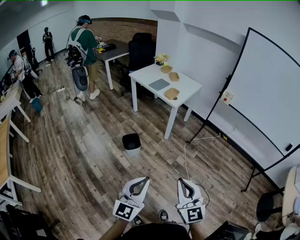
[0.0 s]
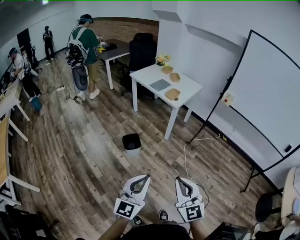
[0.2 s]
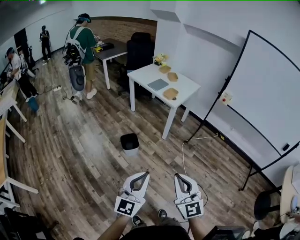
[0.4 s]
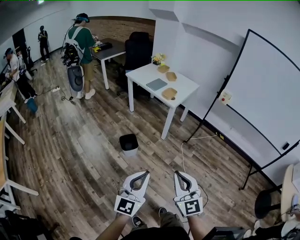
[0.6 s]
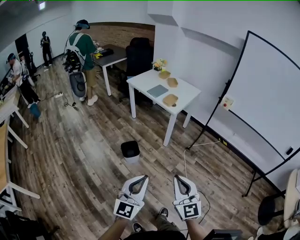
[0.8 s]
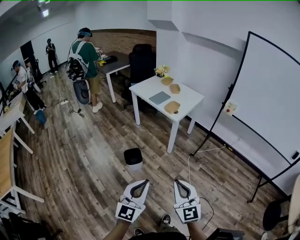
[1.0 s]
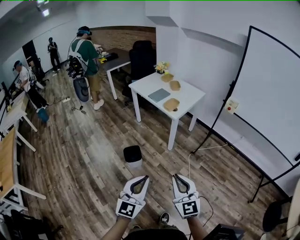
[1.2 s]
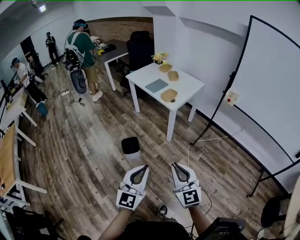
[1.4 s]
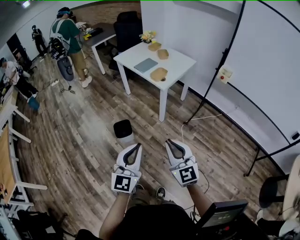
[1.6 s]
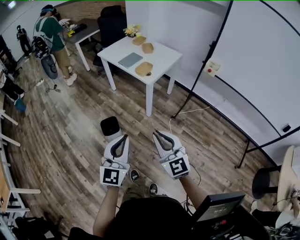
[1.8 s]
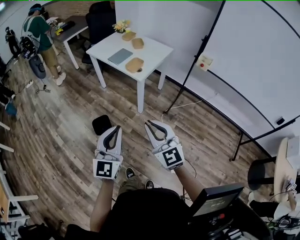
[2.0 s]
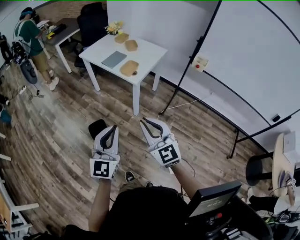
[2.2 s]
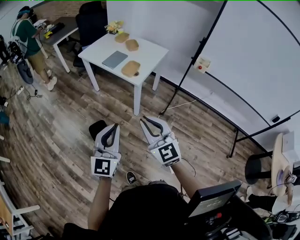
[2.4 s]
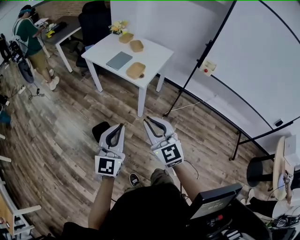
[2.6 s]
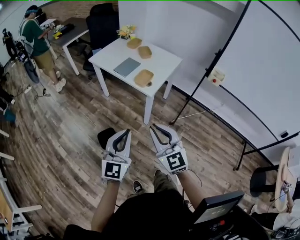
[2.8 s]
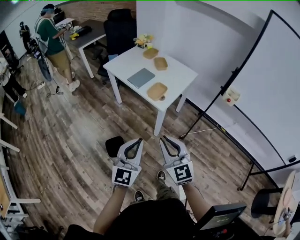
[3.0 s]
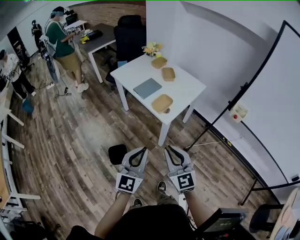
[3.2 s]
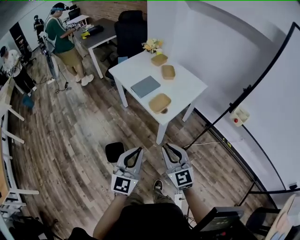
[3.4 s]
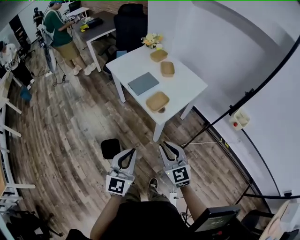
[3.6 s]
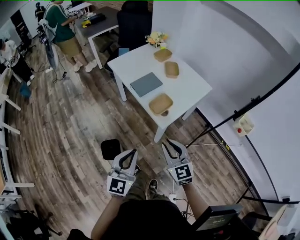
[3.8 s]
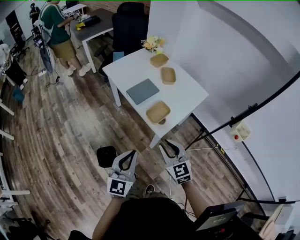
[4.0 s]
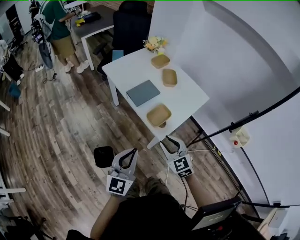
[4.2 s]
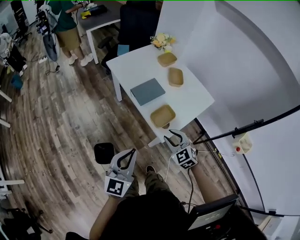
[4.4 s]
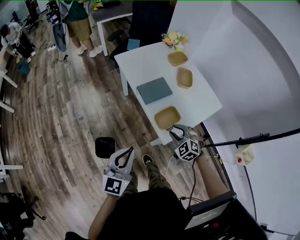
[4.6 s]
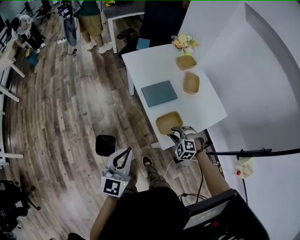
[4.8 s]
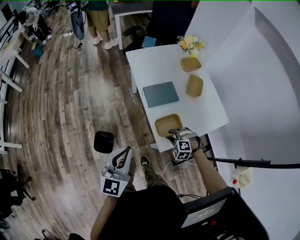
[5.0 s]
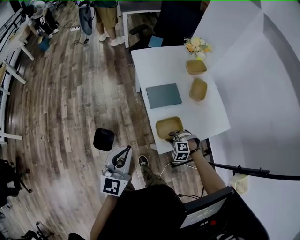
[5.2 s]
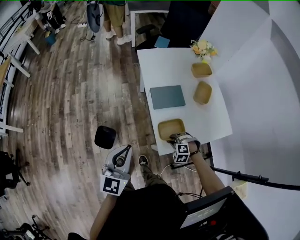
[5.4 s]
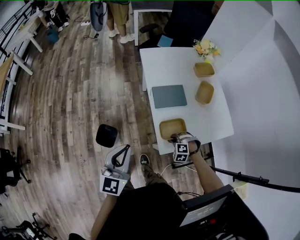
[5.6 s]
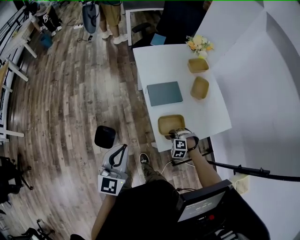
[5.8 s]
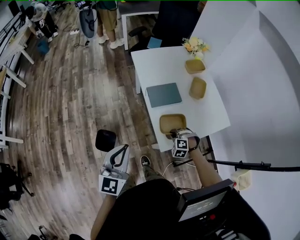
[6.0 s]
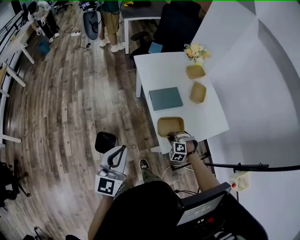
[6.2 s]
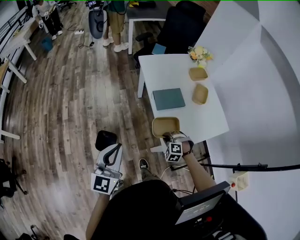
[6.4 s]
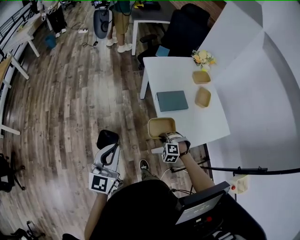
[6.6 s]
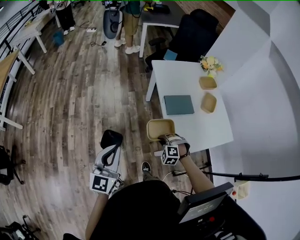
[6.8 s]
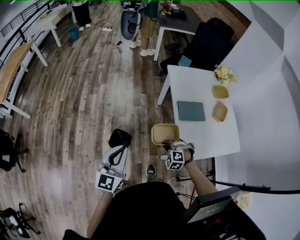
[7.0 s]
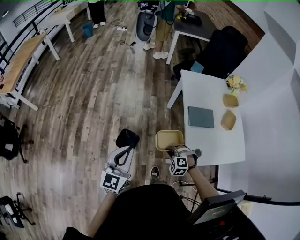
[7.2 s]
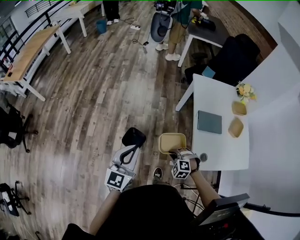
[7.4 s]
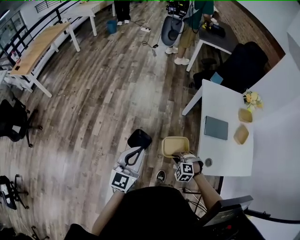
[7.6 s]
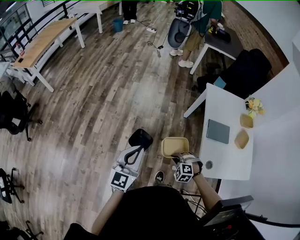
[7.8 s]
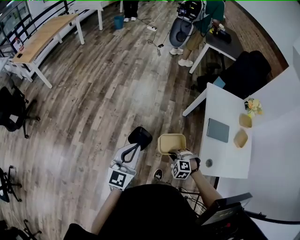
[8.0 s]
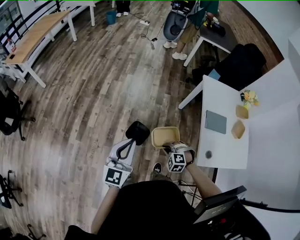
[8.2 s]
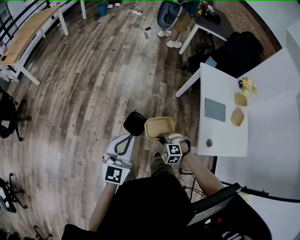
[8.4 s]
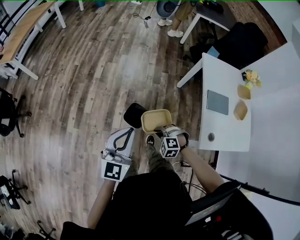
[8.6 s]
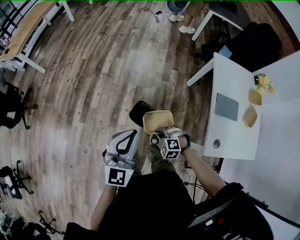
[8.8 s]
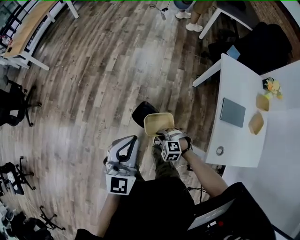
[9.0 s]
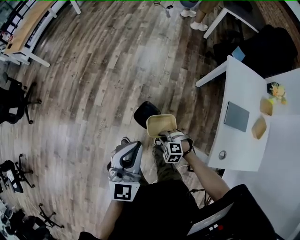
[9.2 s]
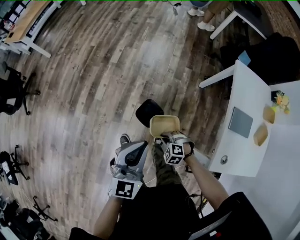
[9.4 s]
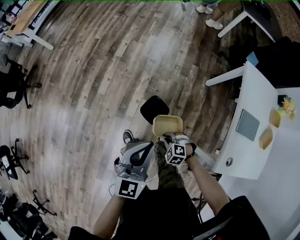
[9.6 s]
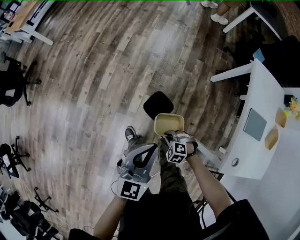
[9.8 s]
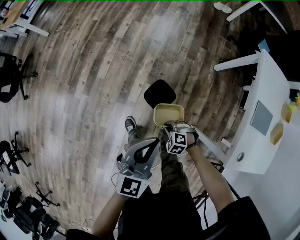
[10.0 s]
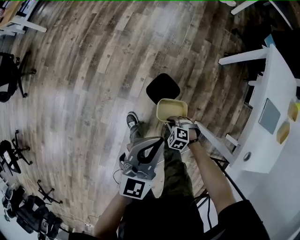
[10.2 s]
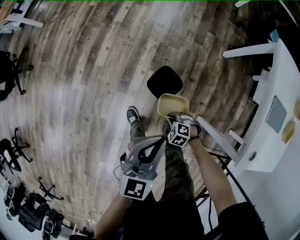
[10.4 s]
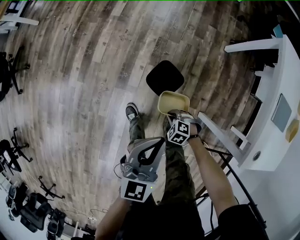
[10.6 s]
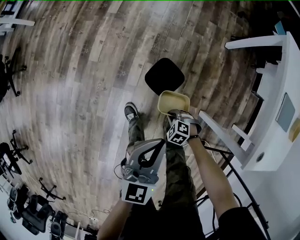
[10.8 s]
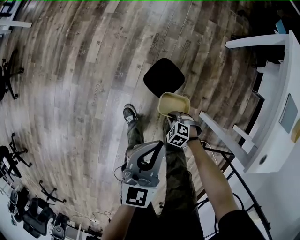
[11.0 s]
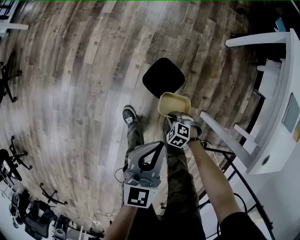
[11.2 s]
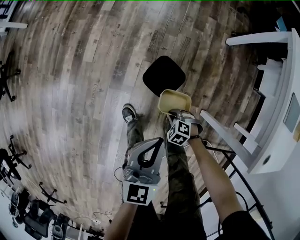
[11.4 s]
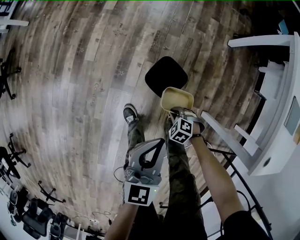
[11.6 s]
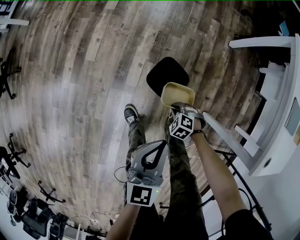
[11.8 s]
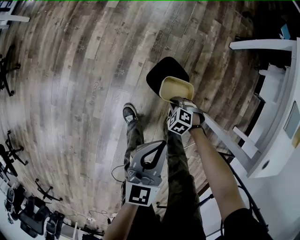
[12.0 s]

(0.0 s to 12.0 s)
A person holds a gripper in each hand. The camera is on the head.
0.0 s - 1.6 s: The right gripper is displaced forward by some 20 cm. Meanwhile the left gripper heads forward and to the right, covering some 20 cm.
1.6 s - 3.0 s: Both grippers move forward, about 30 cm.
3.0 s - 4.4 s: The left gripper shifts roughly 25 cm forward; the right gripper goes some 35 cm forward and downward, angles its fingers downward, by some 30 degrees, and opens.
4.4 s - 6.0 s: The left gripper moves about 5 cm, and turns by roughly 20 degrees. The right gripper moves downward and forward, roughly 20 cm, rotates around the line of its fingers by about 50 degrees, counterclockwise from behind, and closes its fingers.
6.0 s - 7.6 s: The left gripper changes place by some 25 cm, and swivels some 20 degrees; the right gripper shifts by approximately 30 cm, and swivels some 30 degrees.
7.6 s - 9.0 s: The right gripper moves to the left, downward and forward, approximately 15 cm.
9.0 s - 10.4 s: Both grippers move downward, about 25 cm. The left gripper rotates approximately 20 degrees.
10.4 s - 12.0 s: Both grippers move downward, about 15 cm.

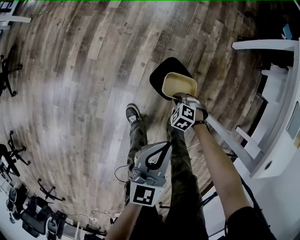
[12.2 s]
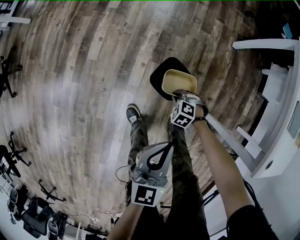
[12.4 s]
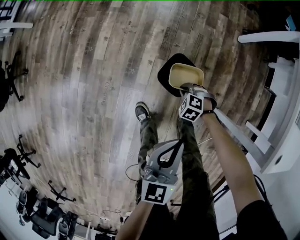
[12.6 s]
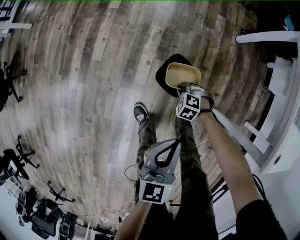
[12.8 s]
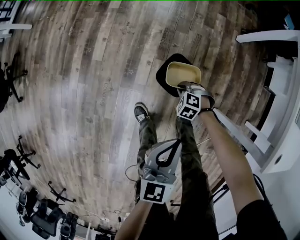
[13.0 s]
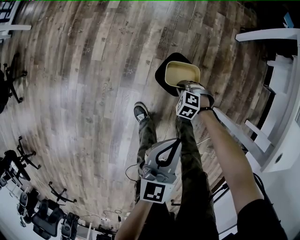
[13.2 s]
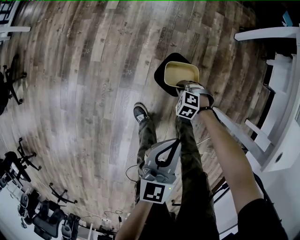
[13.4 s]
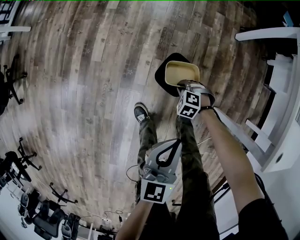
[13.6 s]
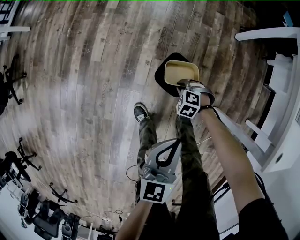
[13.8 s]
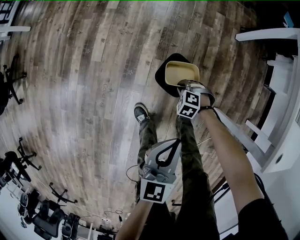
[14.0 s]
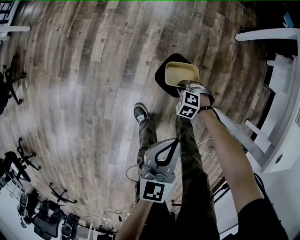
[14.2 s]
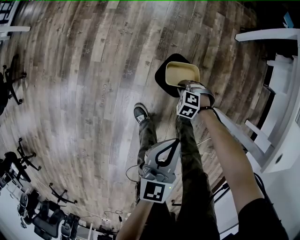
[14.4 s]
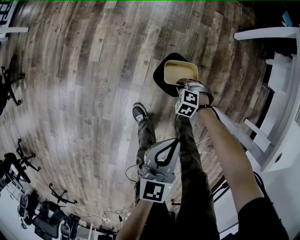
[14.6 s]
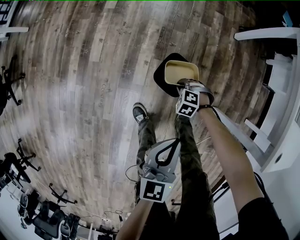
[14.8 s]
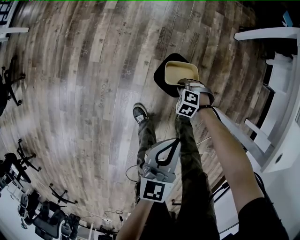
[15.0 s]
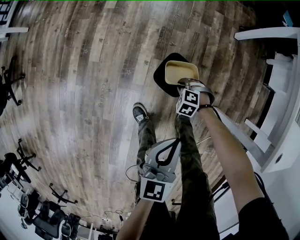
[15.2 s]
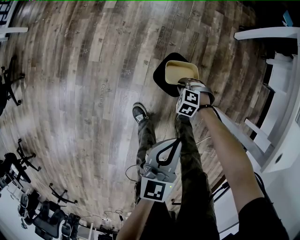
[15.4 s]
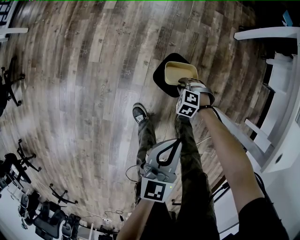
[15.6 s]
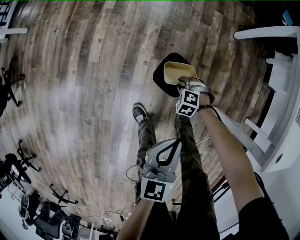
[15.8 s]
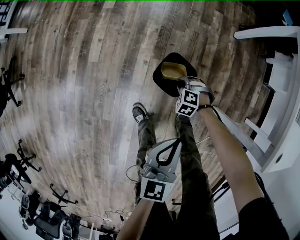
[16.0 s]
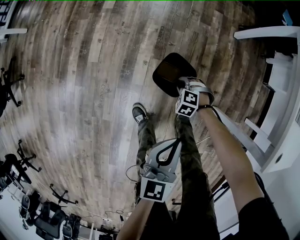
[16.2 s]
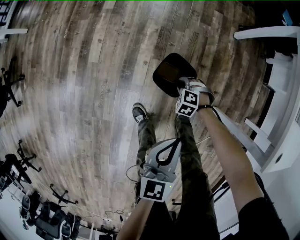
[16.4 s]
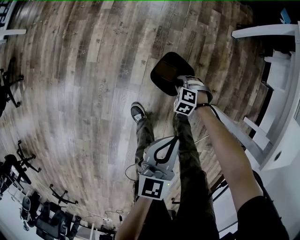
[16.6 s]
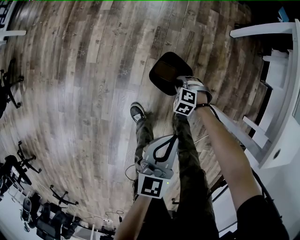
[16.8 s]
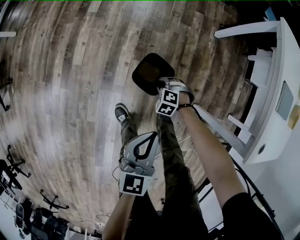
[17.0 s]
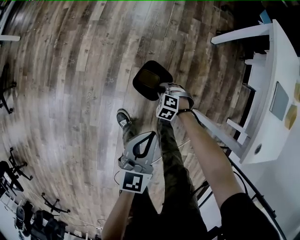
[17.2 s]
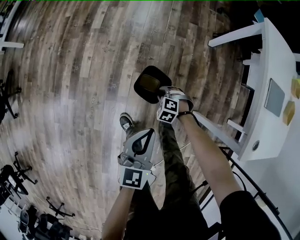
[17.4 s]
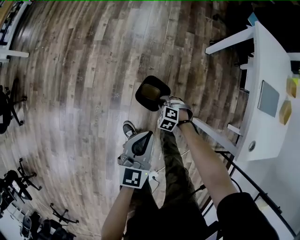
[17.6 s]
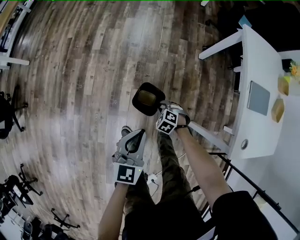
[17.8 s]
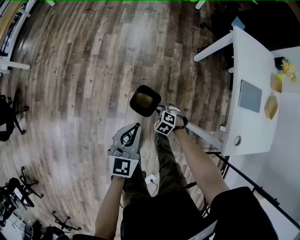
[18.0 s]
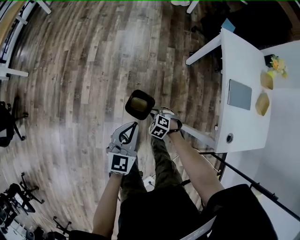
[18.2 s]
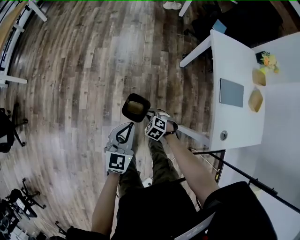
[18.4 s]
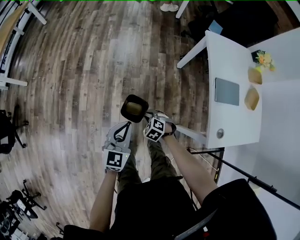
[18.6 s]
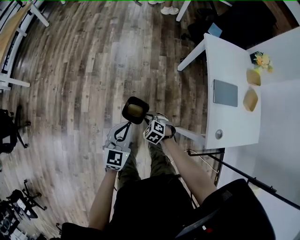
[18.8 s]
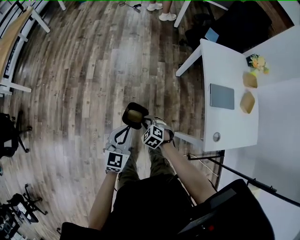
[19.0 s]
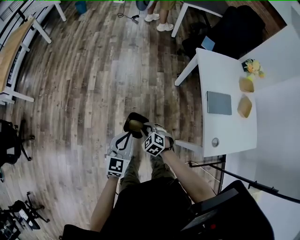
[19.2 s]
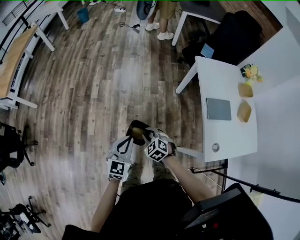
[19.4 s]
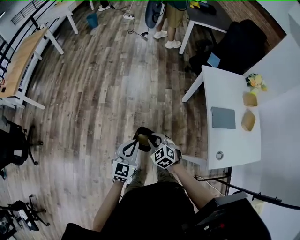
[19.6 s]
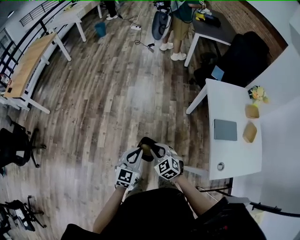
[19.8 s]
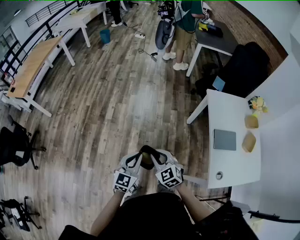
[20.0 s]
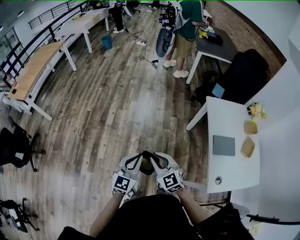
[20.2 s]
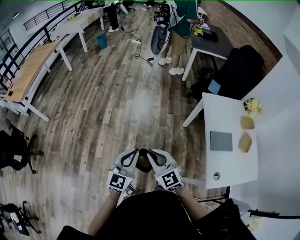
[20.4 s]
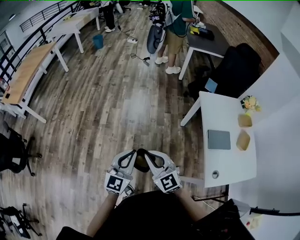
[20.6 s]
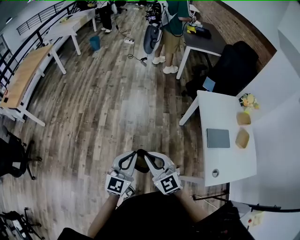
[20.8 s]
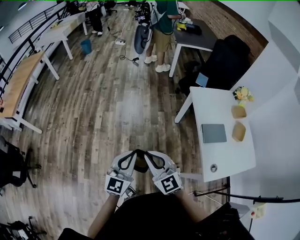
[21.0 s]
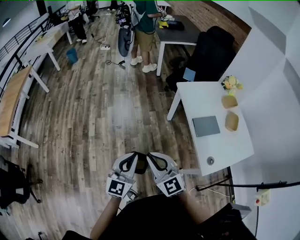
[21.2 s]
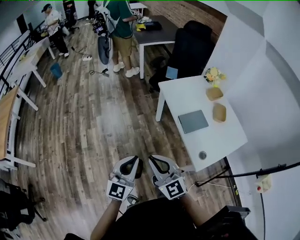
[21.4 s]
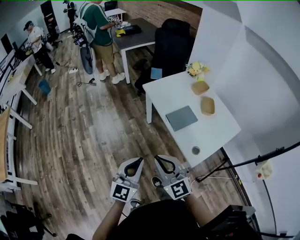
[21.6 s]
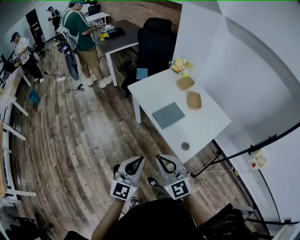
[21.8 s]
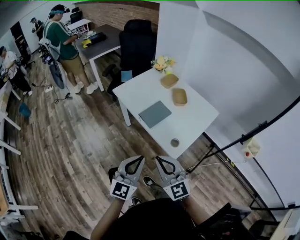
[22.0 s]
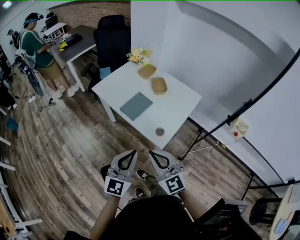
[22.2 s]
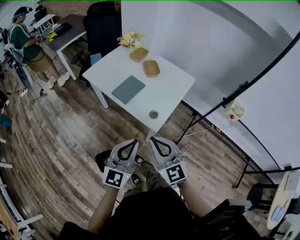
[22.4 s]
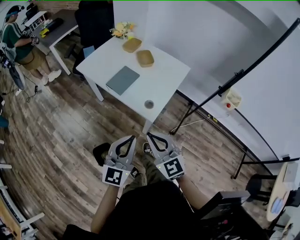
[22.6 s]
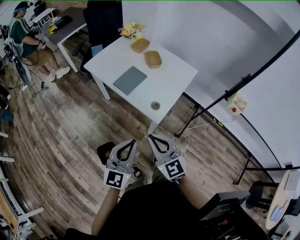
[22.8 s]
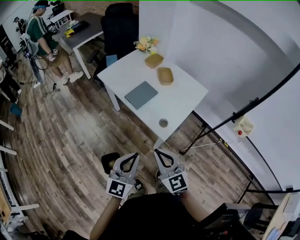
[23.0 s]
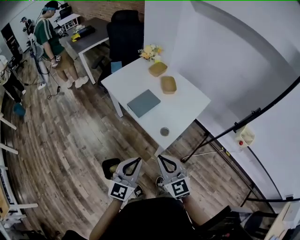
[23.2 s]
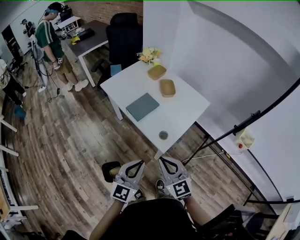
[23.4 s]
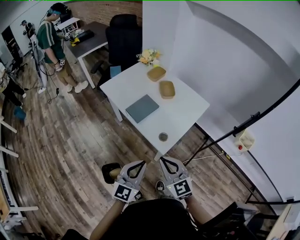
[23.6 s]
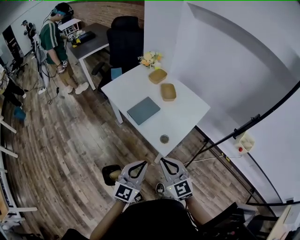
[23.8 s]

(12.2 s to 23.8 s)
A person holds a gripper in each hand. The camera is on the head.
12.2 s - 13.6 s: The grippers move only a little.
13.6 s - 15.0 s: Both grippers stay about where they are.
15.0 s - 16.6 s: Both grippers stay about where they are.
16.6 s - 18.0 s: The two grippers go some 20 cm upward.
18.0 s - 19.4 s: The right gripper is displaced upward by roughly 25 cm, and changes its angle by roughly 20 degrees, while the left gripper goes approximately 10 cm upward.
19.4 s - 21.0 s: The left gripper travels upward by some 15 cm, while the right gripper travels upward by about 25 cm, and tilts its fingers approximately 40 degrees upward.
21.0 s - 22.4 s: The right gripper ends up about 35 cm from where it was, and turns by some 60 degrees; the left gripper moves some 35 cm, and rotates roughly 50 degrees.
22.4 s - 23.8 s: The grippers make only small movements.
